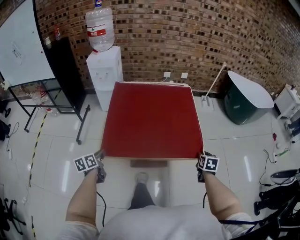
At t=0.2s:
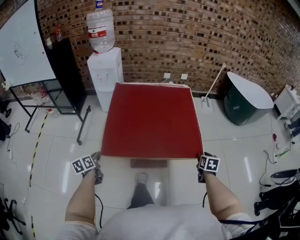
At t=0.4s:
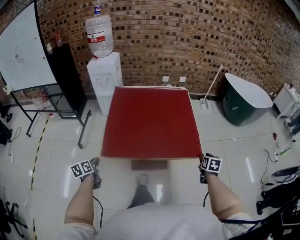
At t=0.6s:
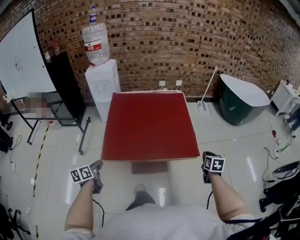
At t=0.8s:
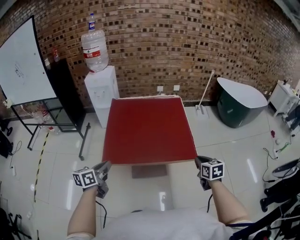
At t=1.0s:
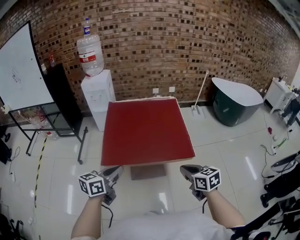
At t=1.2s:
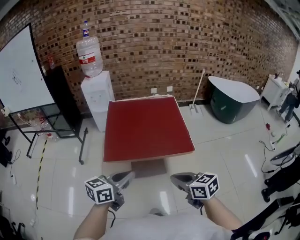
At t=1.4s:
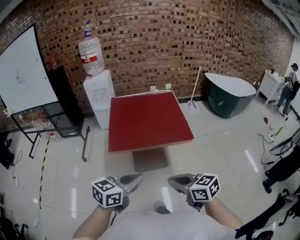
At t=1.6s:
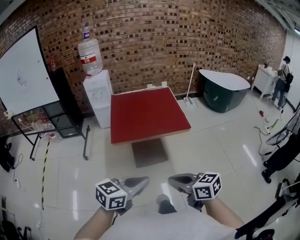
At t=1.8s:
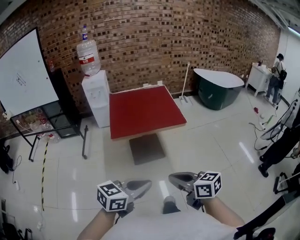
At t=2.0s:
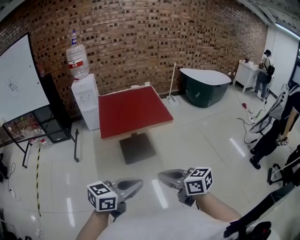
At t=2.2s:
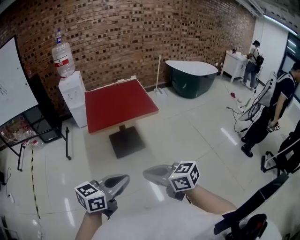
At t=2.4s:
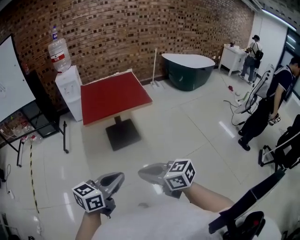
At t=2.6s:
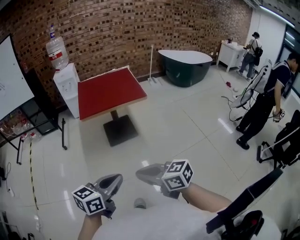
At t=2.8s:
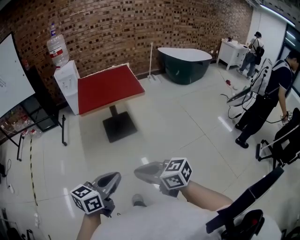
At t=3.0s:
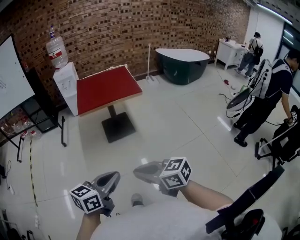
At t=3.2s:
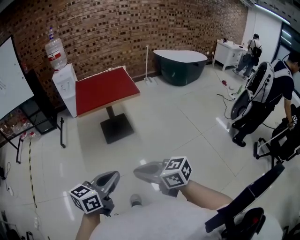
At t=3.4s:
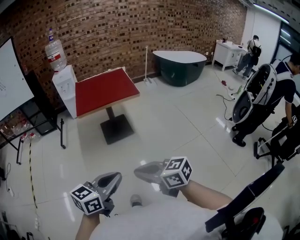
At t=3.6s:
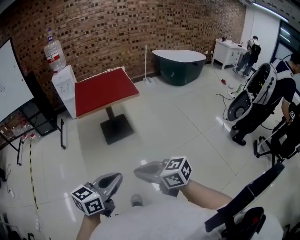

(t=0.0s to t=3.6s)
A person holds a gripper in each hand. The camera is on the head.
t=0.0s - t=1.8s: The right gripper travels backward, upward and to the left by approximately 60 cm, and rotates roughly 50 degrees. Meanwhile the left gripper travels backward, upward and to the right by approximately 60 cm, and turns by approximately 70 degrees.
t=1.8s - t=3.6s: The grippers both shift backward by roughly 25 cm.

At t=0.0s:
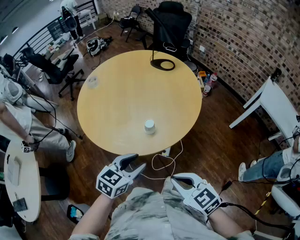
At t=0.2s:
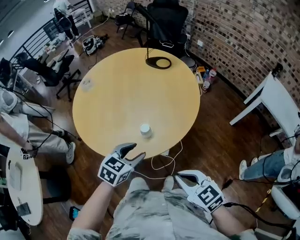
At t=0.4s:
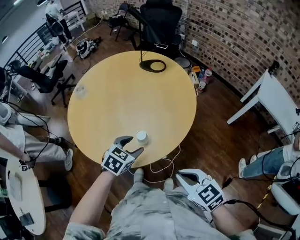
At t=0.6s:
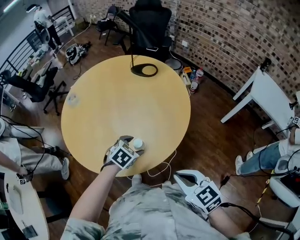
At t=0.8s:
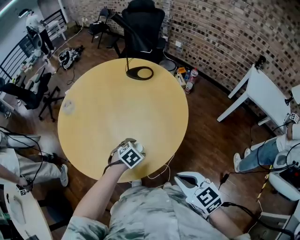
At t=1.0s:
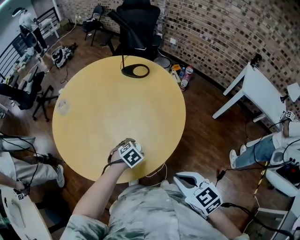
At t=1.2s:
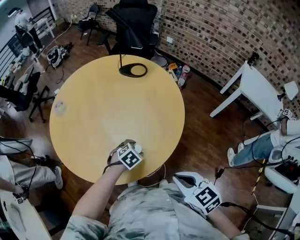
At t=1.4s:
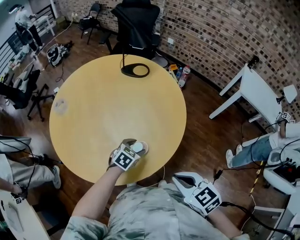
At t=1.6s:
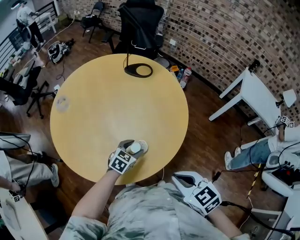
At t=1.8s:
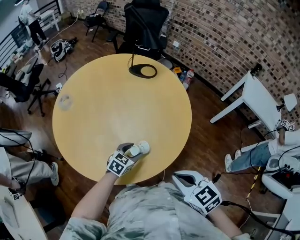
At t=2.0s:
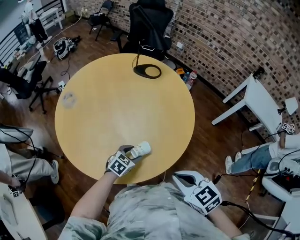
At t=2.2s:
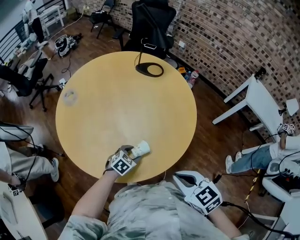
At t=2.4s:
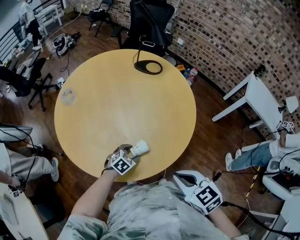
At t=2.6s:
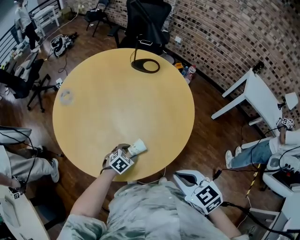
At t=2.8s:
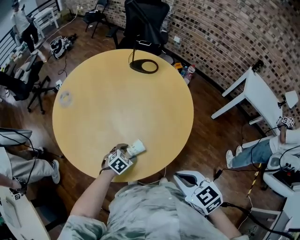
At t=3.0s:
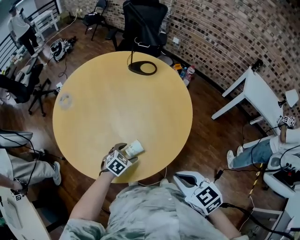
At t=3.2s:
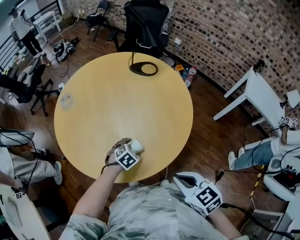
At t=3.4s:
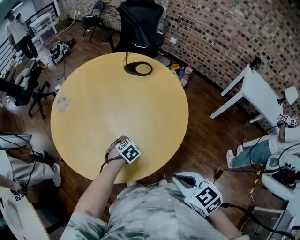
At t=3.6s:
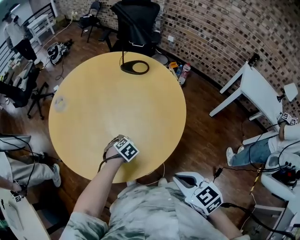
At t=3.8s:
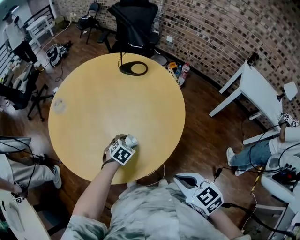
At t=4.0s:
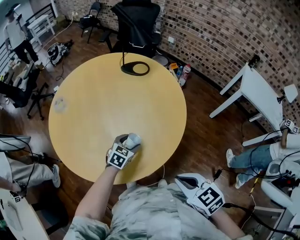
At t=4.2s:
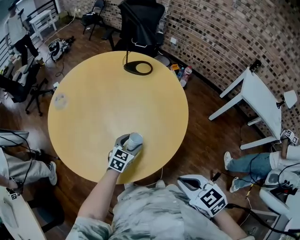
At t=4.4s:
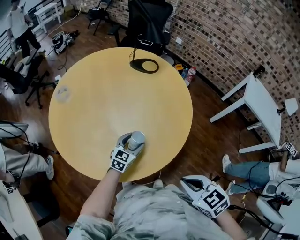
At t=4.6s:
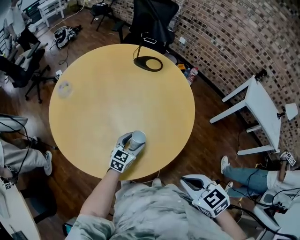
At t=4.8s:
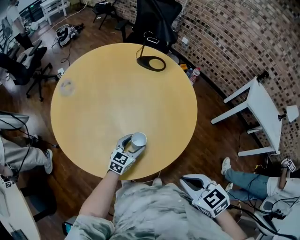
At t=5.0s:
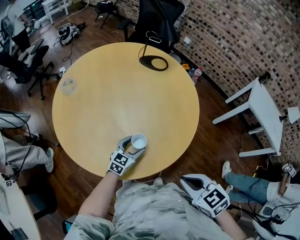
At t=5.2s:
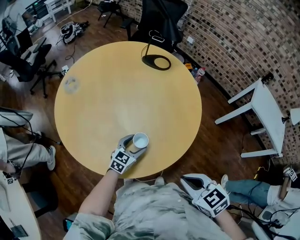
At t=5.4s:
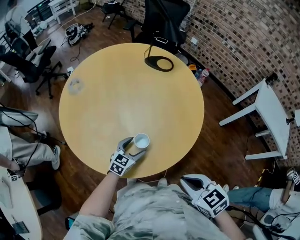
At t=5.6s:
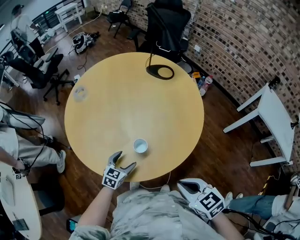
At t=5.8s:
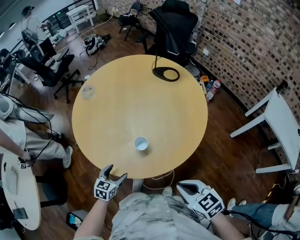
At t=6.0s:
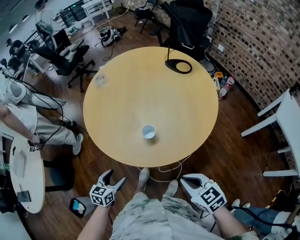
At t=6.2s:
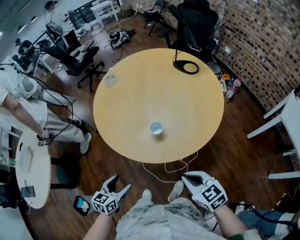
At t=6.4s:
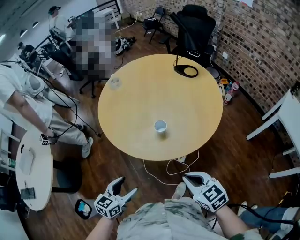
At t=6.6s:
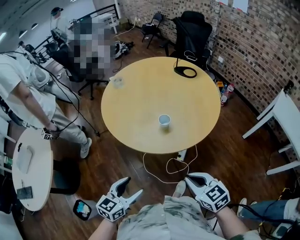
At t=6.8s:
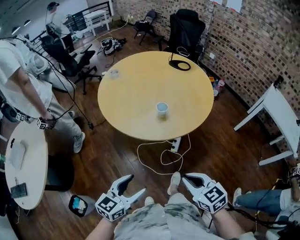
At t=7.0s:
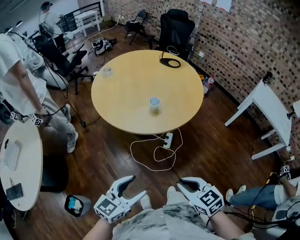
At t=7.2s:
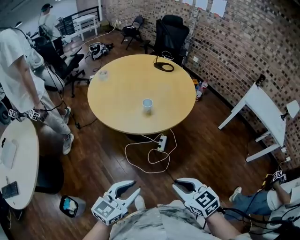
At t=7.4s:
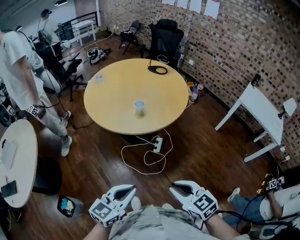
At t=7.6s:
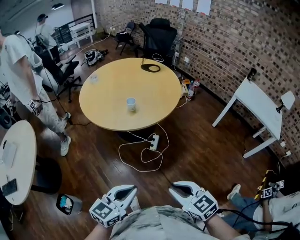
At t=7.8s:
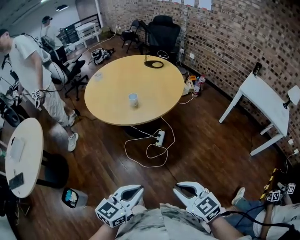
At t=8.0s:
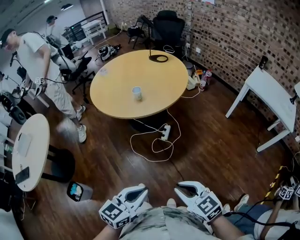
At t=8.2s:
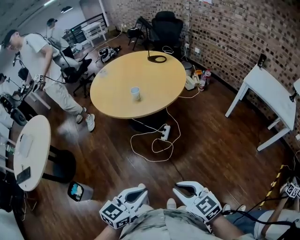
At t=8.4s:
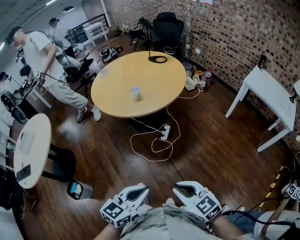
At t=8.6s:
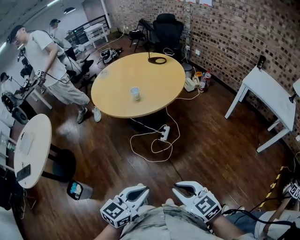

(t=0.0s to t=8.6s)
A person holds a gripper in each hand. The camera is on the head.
t=0.0s - t=1.4s: The left gripper goes approximately 30 cm forward and downward, and swivels some 30 degrees. Meanwhile the right gripper moves forward, roughly 15 cm.
t=1.4s - t=2.8s: The left gripper travels to the left and downward by approximately 10 cm.
t=2.8s - t=4.4s: The left gripper moves roughly 10 cm, and points its fingers about 30 degrees further upward.
t=4.4s - t=5.8s: The left gripper travels backward and to the left by some 25 cm, and rotates some 30 degrees.
t=5.8s - t=7.2s: The left gripper is displaced backward and upward by roughly 40 cm, turns by some 30 degrees, and closes its fingers. The right gripper travels backward and to the left by approximately 30 cm.
t=7.2s - t=8.6s: The left gripper shifts roughly 30 cm to the right and backward. The right gripper is displaced backward and to the right by about 25 cm.

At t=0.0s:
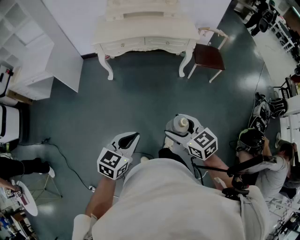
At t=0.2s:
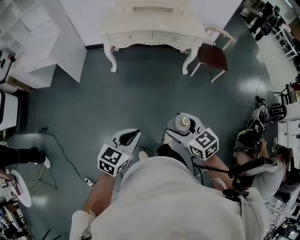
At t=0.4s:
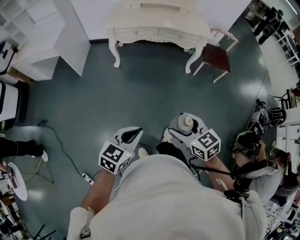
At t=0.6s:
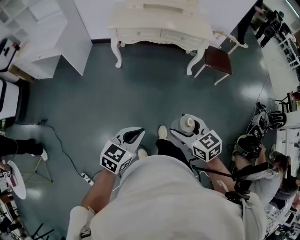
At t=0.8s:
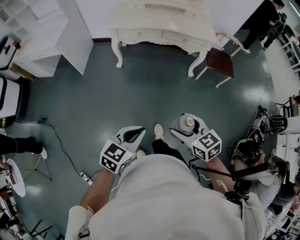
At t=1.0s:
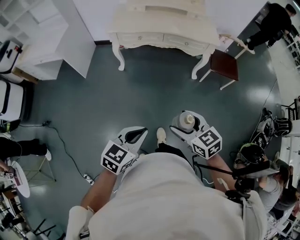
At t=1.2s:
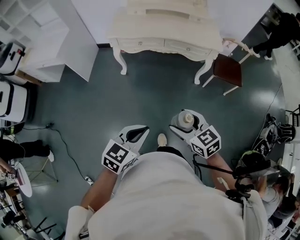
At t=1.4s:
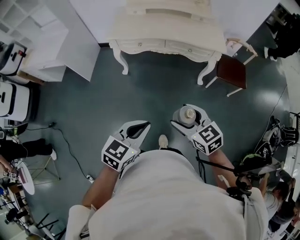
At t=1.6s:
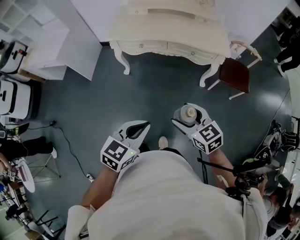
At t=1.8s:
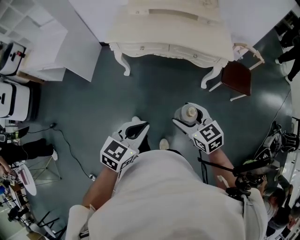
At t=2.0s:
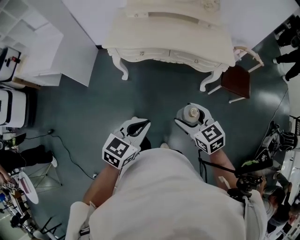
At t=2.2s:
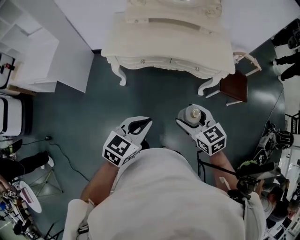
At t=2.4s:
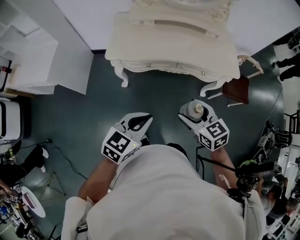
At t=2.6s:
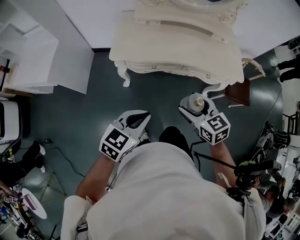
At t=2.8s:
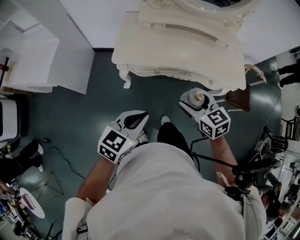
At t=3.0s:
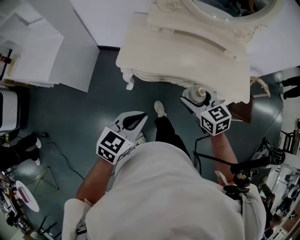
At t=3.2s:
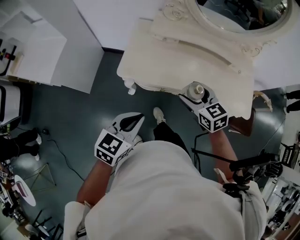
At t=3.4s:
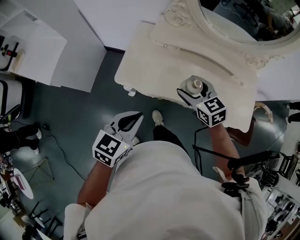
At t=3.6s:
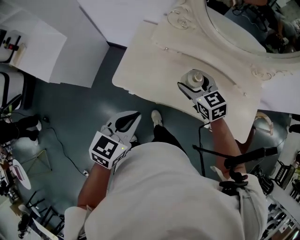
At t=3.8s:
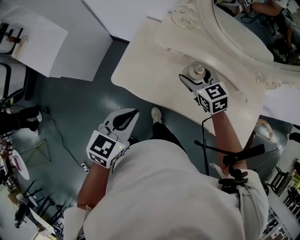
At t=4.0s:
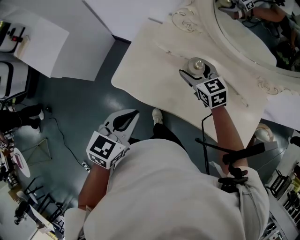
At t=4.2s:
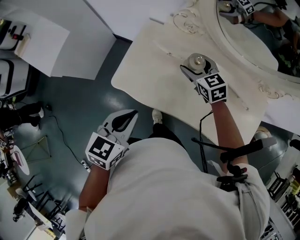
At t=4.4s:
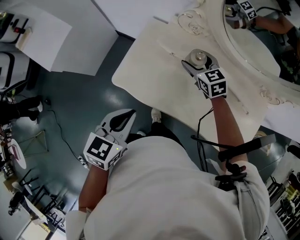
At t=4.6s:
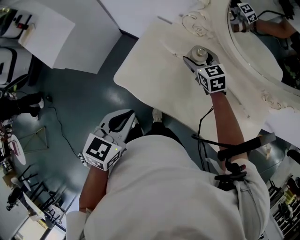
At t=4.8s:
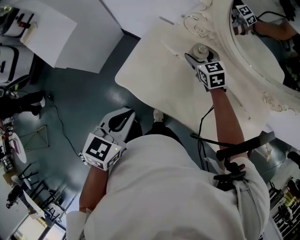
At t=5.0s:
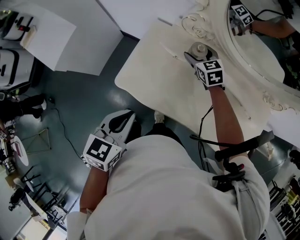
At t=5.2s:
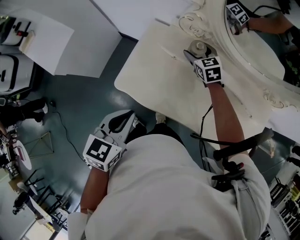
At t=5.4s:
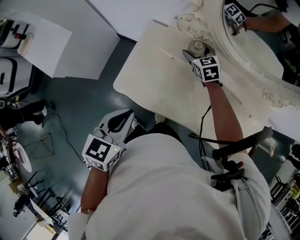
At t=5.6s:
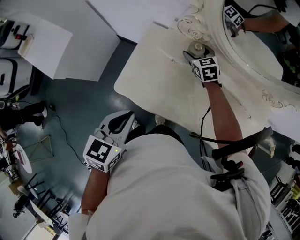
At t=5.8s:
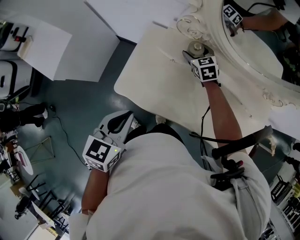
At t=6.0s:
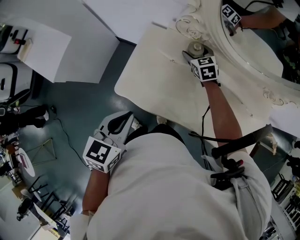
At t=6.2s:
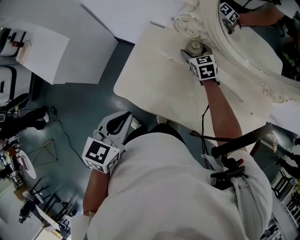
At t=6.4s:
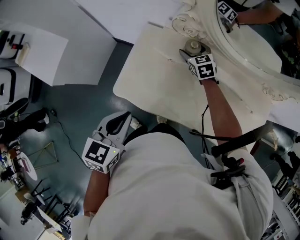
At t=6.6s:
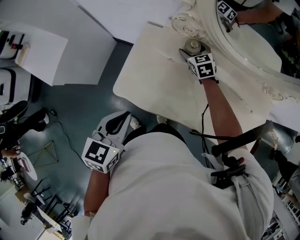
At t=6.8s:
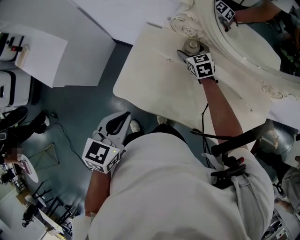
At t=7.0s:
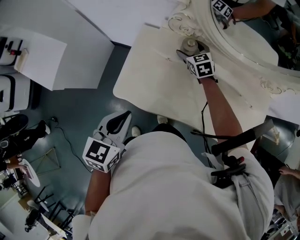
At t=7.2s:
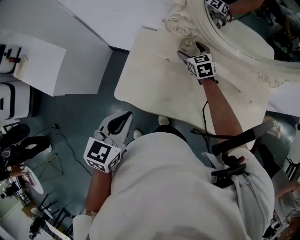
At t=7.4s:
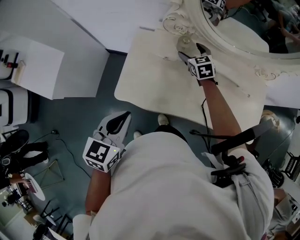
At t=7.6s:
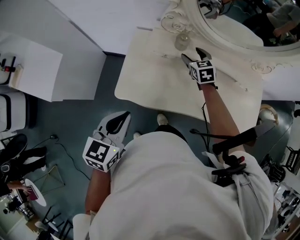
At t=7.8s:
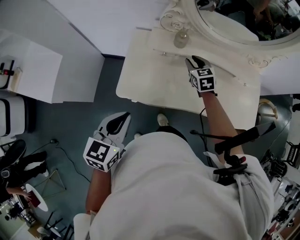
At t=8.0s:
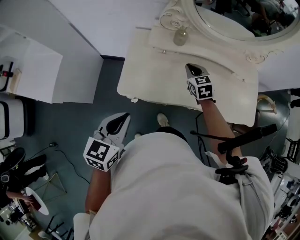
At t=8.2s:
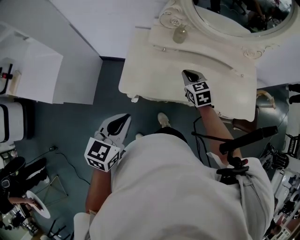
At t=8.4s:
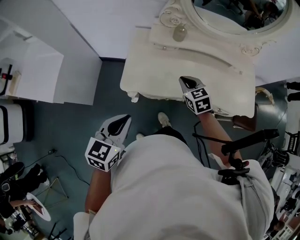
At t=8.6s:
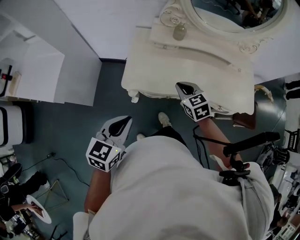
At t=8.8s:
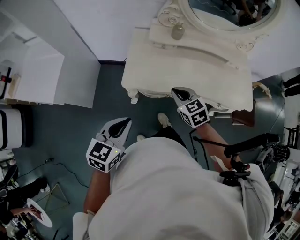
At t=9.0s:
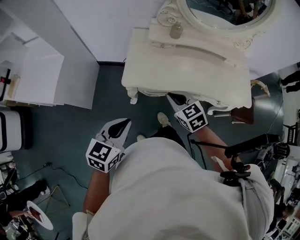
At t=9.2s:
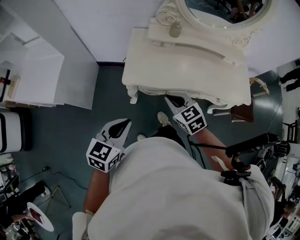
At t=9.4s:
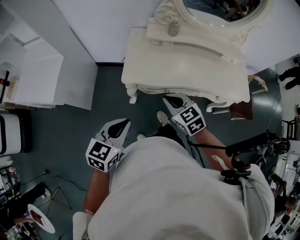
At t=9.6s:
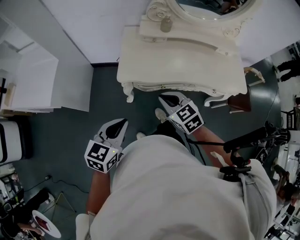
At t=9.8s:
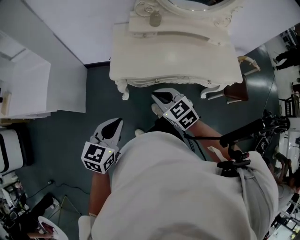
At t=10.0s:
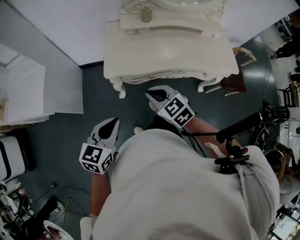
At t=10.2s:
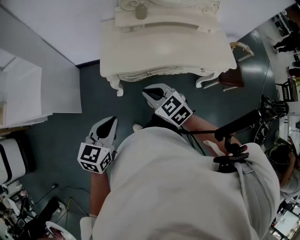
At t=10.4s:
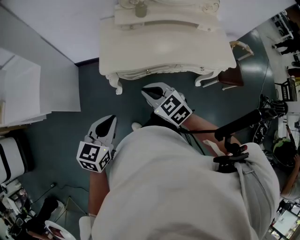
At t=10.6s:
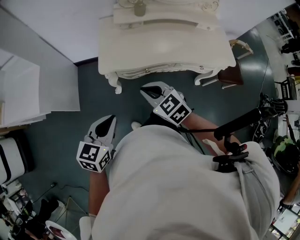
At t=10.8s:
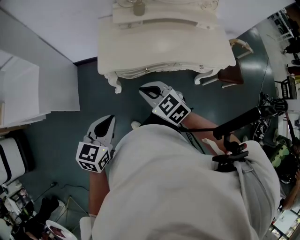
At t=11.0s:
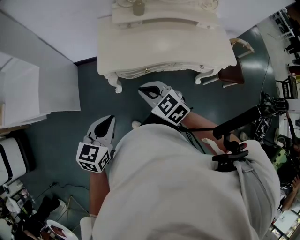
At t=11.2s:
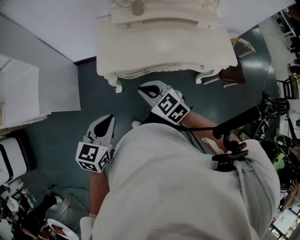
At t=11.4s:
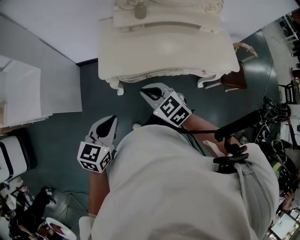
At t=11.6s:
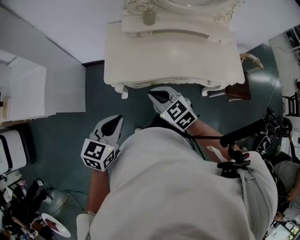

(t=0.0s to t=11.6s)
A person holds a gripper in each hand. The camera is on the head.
t=0.0s - t=1.4s: The grippers both shift forward by some 20 cm.
t=1.4s - t=2.8s: The two grippers travel together, forward and to the left, approximately 40 cm.
t=2.8s - t=4.4s: The left gripper is displaced forward by about 30 cm, and turns by some 30 degrees, while the right gripper goes approximately 50 cm forward, and changes its angle by approximately 20 degrees.
t=4.4s - t=5.8s: The right gripper moves forward and downward, about 10 cm.
t=5.8s - t=7.2s: There are only small adjustments of the grippers.
t=7.2s - t=8.8s: The left gripper goes some 25 cm backward and to the left. The right gripper travels backward by some 40 cm, and closes its fingers.
t=8.8s - t=10.2s: The left gripper is displaced backward by approximately 10 cm. Meanwhile the right gripper heads backward and to the left, covering roughly 15 cm.
t=10.2s - t=11.6s: Both grippers move forward, about 5 cm.
